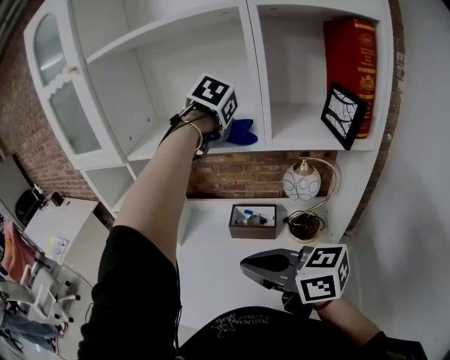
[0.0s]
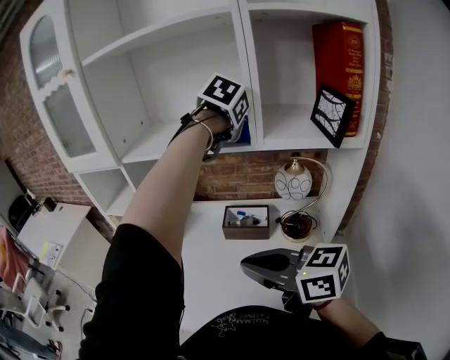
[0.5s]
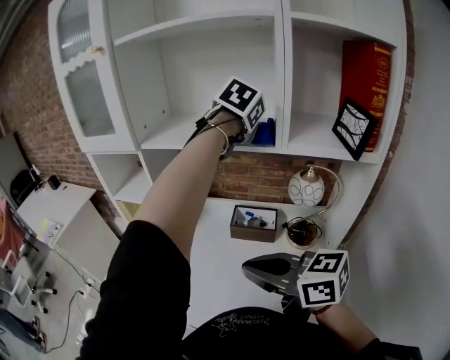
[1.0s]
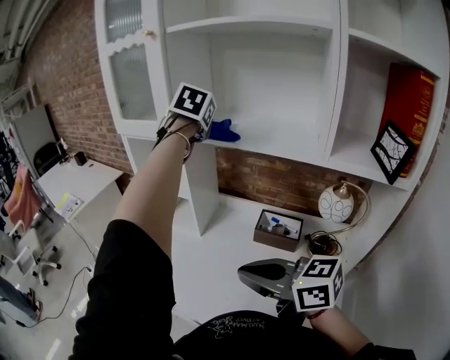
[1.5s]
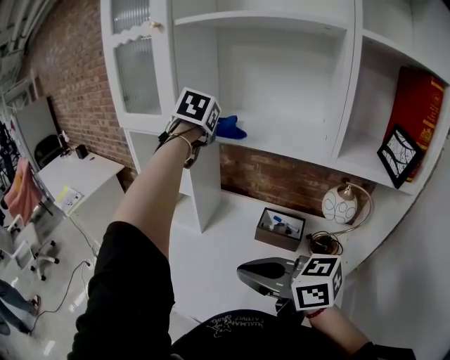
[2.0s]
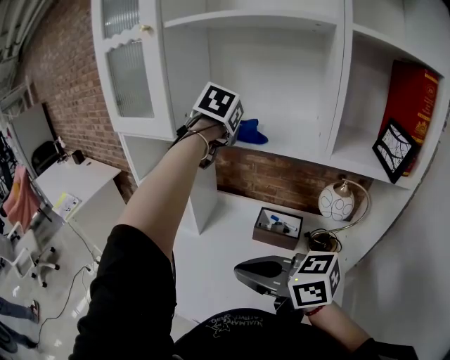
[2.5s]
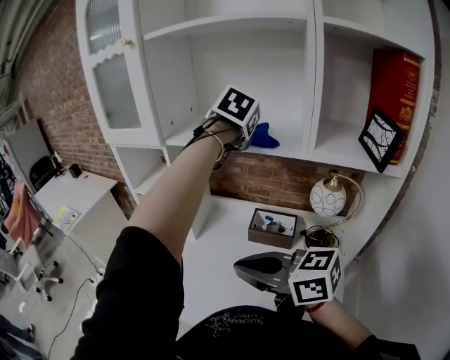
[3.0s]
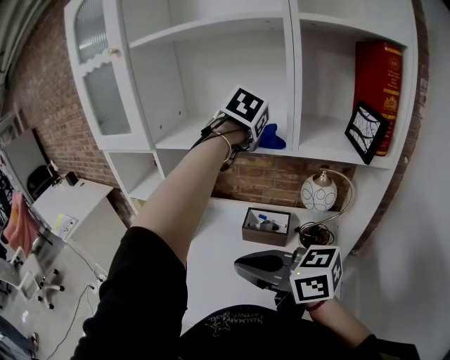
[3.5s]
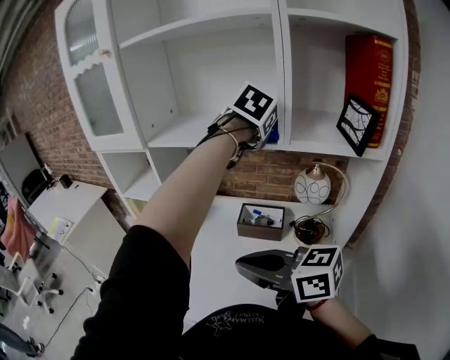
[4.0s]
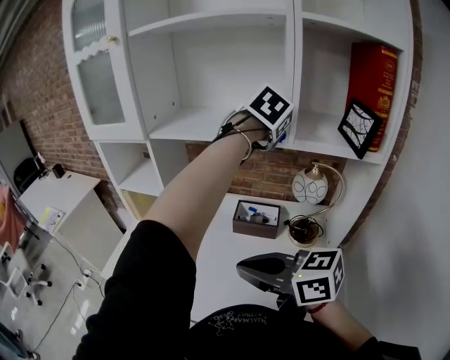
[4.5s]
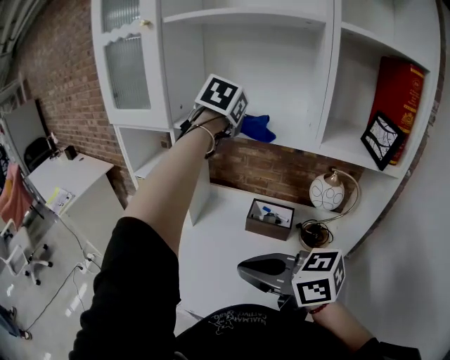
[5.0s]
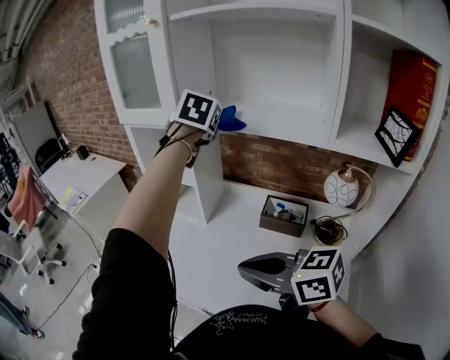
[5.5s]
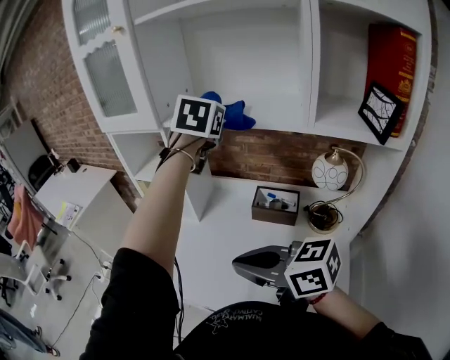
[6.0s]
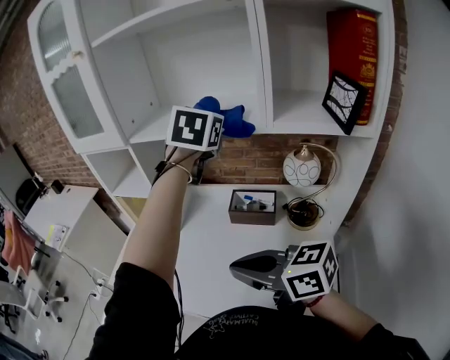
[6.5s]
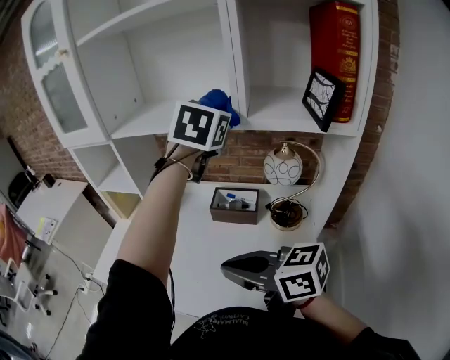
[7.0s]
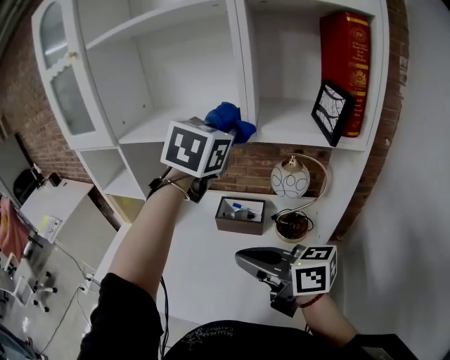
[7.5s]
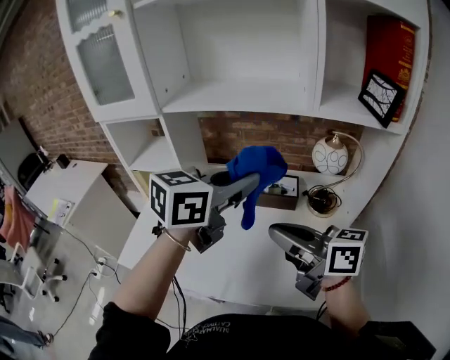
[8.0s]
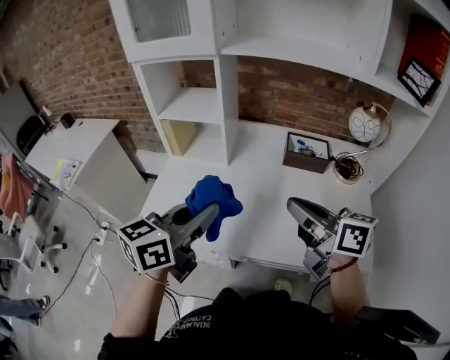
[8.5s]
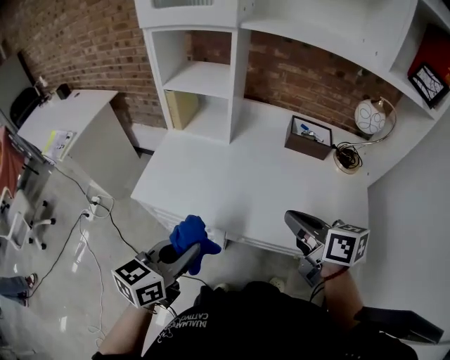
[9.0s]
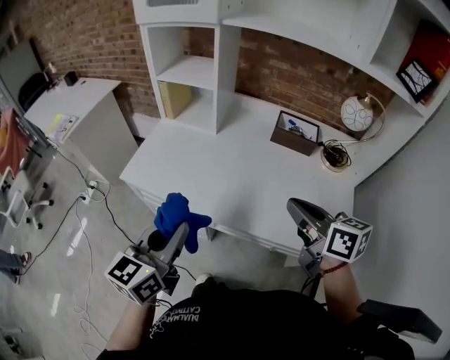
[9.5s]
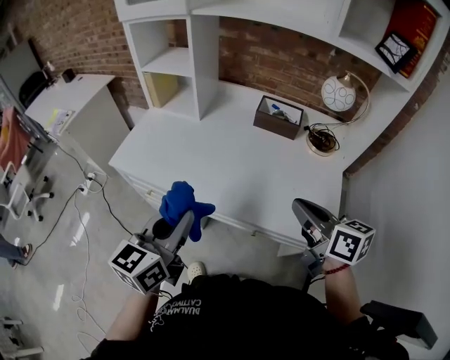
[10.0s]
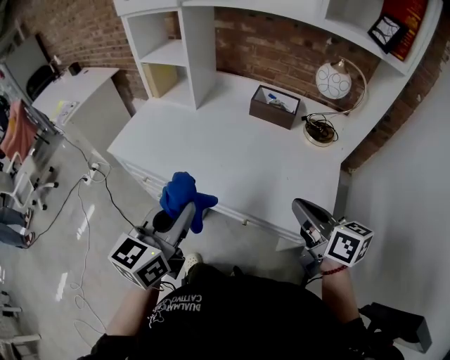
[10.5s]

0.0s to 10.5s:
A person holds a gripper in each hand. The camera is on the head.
0.0s to 2.0s: The right gripper shifts roughly 10 cm to the left. Meanwhile the left gripper goes some 25 cm to the left and forward, and turns by roughly 30 degrees.
2.0s to 4.0s: The right gripper moves roughly 5 cm; the left gripper shifts roughly 30 cm to the right and backward, and rotates roughly 30 degrees.
4.0s to 6.5s: The left gripper goes to the left and returns, about 25 cm each way, and rotates roughly 20 degrees.
6.5s to 8.5s: The right gripper moves some 10 cm, and rotates approximately 30 degrees. Meanwhile the left gripper moves some 50 cm, and changes its angle by some 50 degrees.
8.5s to 10.5s: The left gripper shifts roughly 25 cm backward and to the right, and swivels roughly 30 degrees. Meanwhile the right gripper travels to the right and backward by approximately 25 cm.

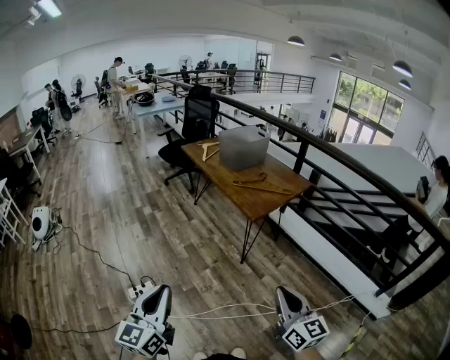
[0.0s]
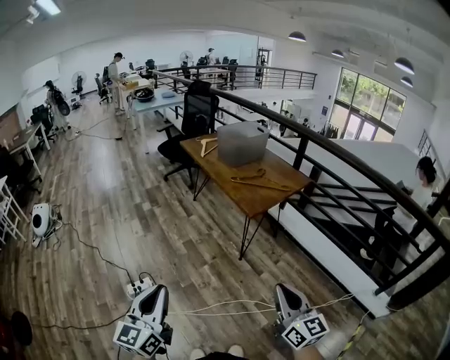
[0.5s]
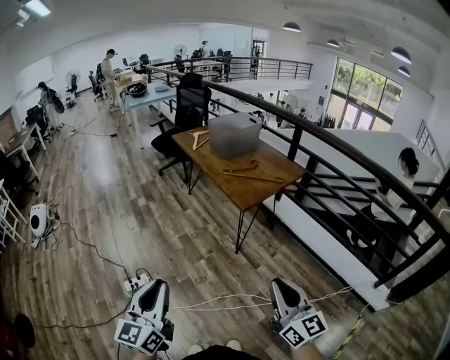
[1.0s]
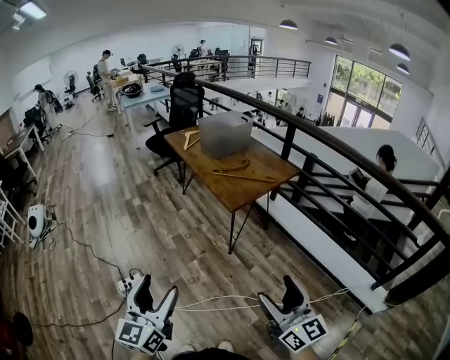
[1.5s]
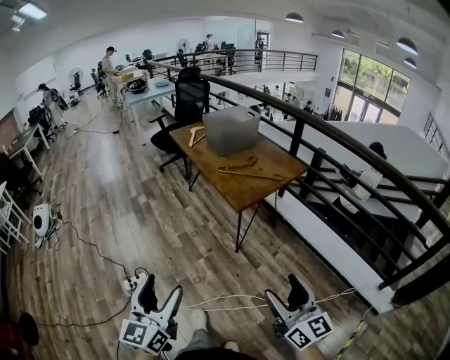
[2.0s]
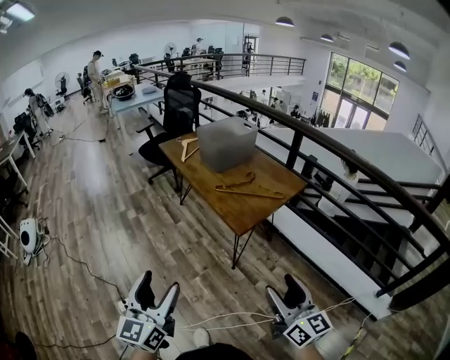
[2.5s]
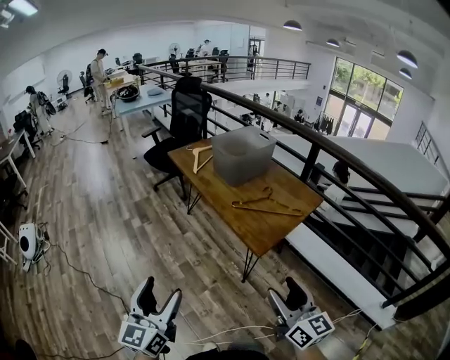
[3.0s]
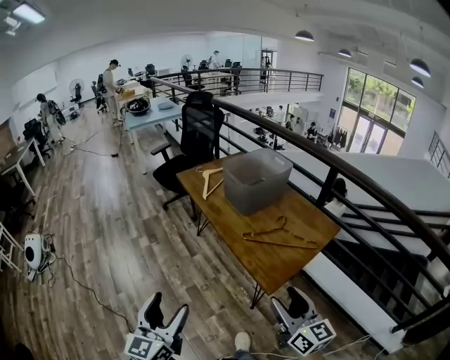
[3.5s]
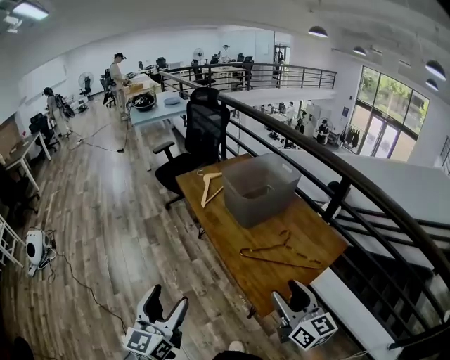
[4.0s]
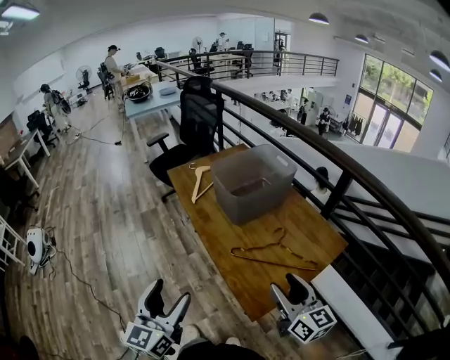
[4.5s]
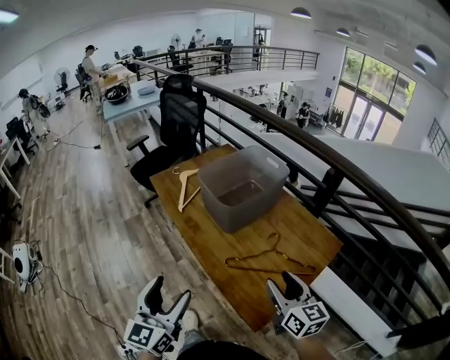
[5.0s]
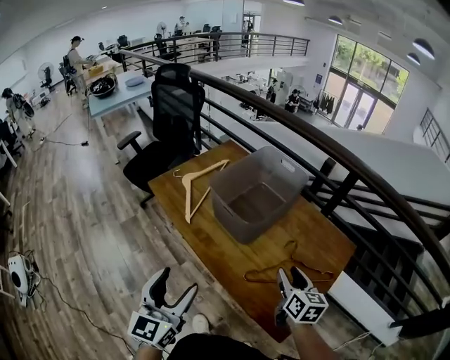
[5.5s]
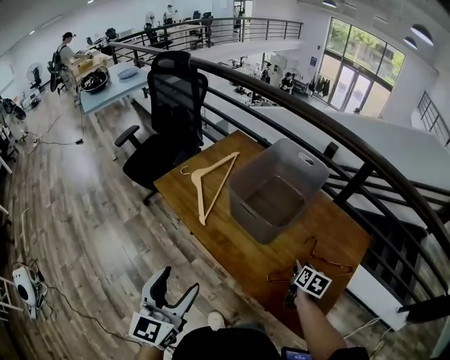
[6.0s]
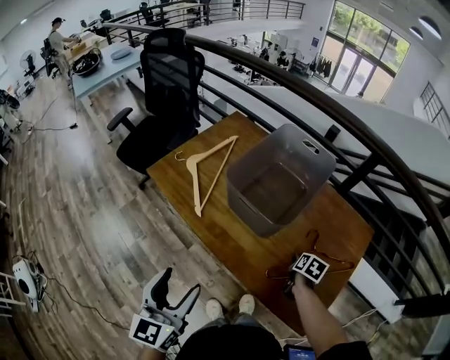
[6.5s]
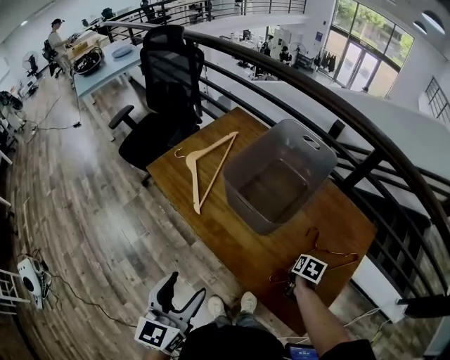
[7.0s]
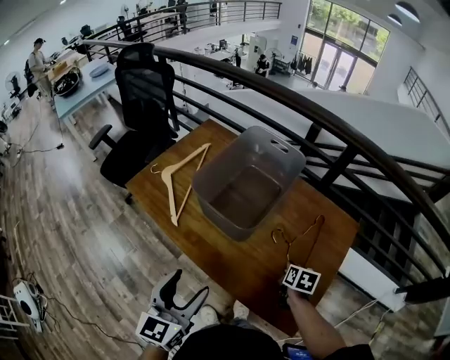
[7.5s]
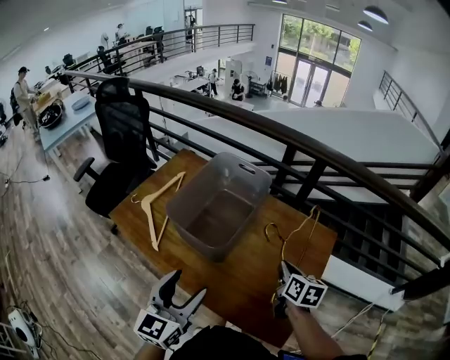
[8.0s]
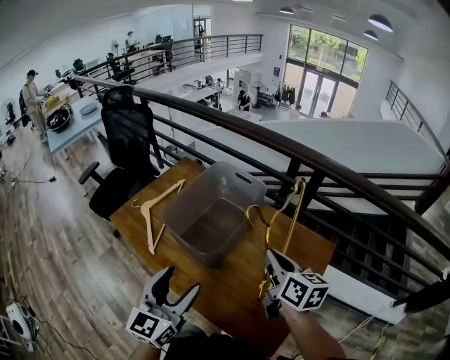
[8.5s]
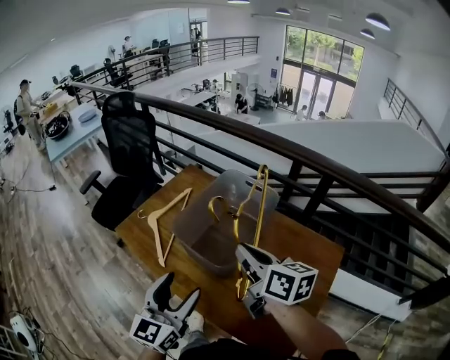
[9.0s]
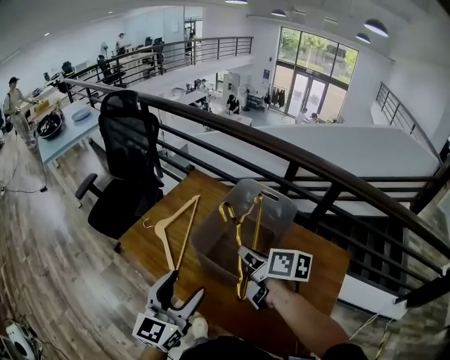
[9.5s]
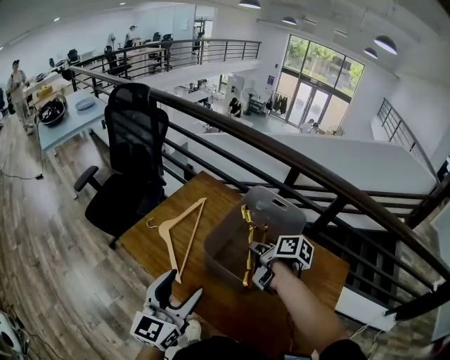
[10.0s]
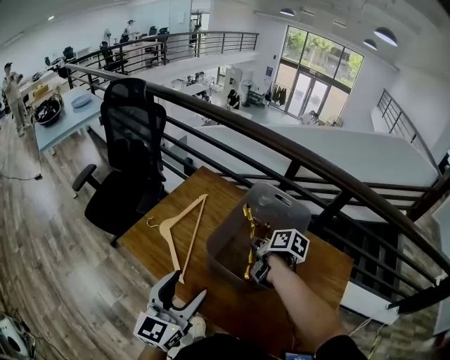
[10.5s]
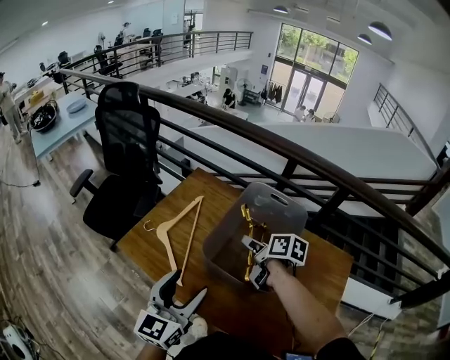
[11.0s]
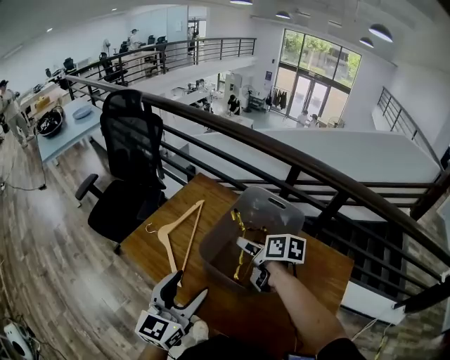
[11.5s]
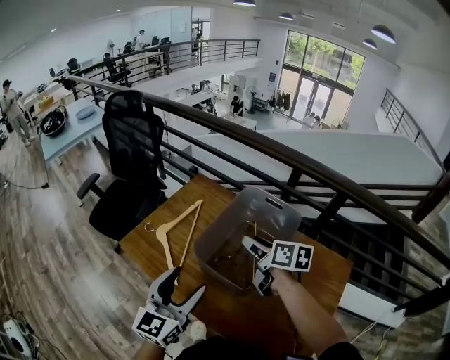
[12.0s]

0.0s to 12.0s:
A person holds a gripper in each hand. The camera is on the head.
0.0s to 2.0s: The left gripper travels to the right and forward by some 15 cm, and opens. Meanwhile the right gripper goes roughly 10 cm to the right, and opens up.
2.0s to 4.0s: Both grippers are carried forward, roughly 50 cm.
4.0s to 6.0s: The right gripper changes place by roughly 35 cm, and tilts its fingers roughly 40 degrees downward. The left gripper changes place by about 30 cm, and turns by about 20 degrees.
6.0s to 8.0s: The left gripper goes some 20 cm to the right and forward. Meanwhile the right gripper moves upward, about 10 cm, and closes.
8.0s to 10.0s: The left gripper travels to the left and forward by some 20 cm. The right gripper moves to the left and forward, some 30 cm, and changes its angle by some 30 degrees.
10.0s to 12.0s: The right gripper swivels about 20 degrees, and opens up.

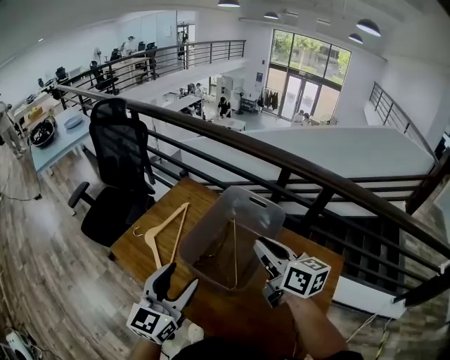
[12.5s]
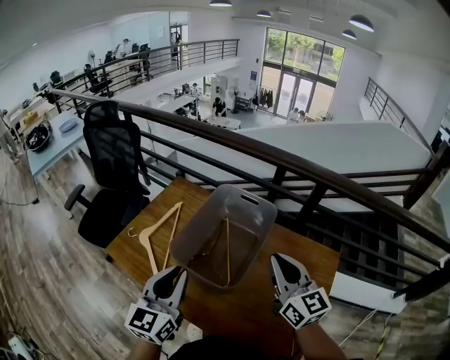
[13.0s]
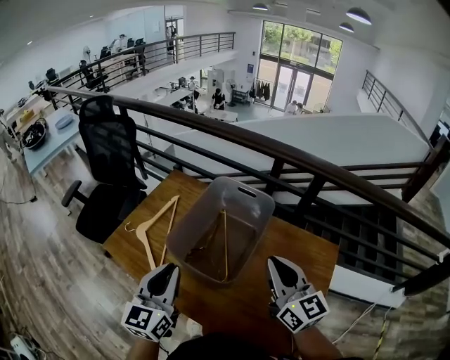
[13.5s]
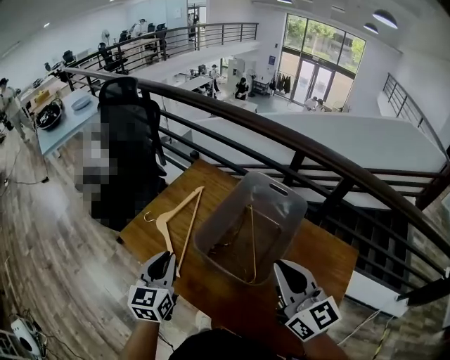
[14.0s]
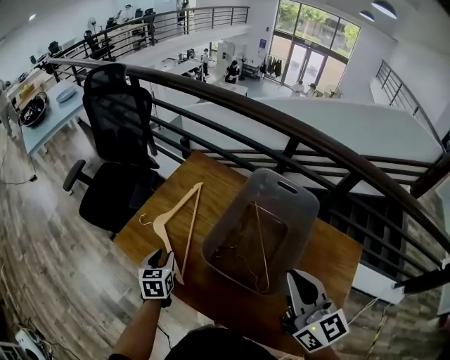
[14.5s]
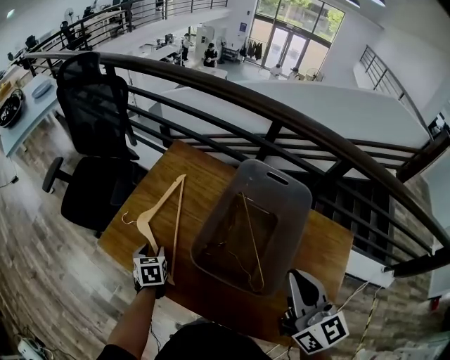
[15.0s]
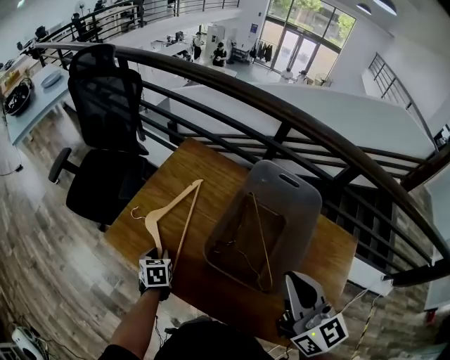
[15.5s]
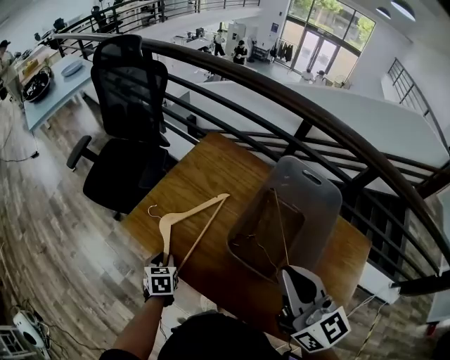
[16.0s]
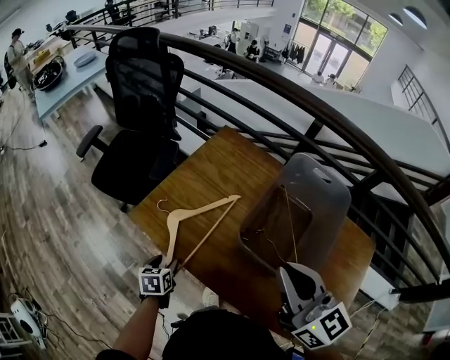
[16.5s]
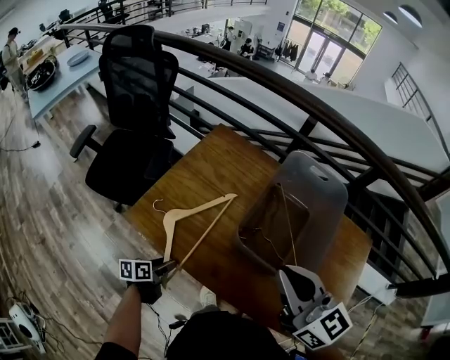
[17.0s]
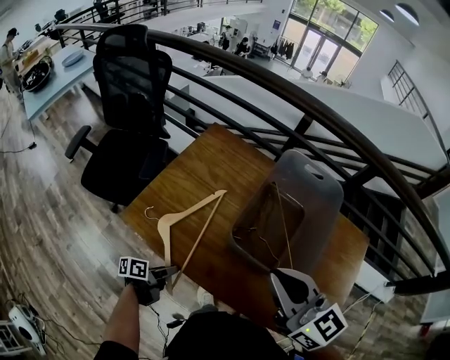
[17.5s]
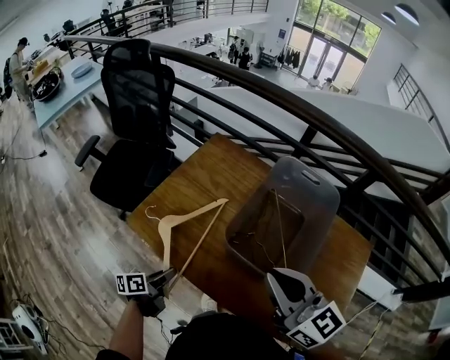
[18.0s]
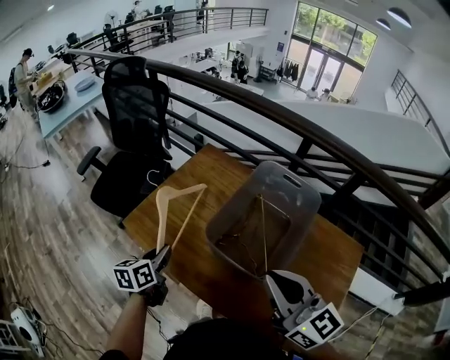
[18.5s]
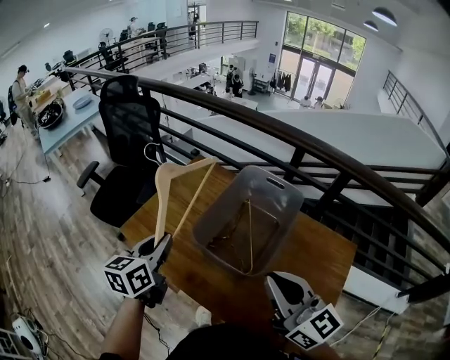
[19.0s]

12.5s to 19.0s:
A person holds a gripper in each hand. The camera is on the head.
12.5s to 14.5s: The left gripper goes about 30 cm downward, to the left and forward, tilts its fingers some 40 degrees downward, and closes up. Meanwhile the right gripper moves backward, about 5 cm, and changes its angle by some 20 degrees.
14.5s to 17.0s: The left gripper moves downward, backward and to the left, about 15 cm, and changes its angle by roughly 50 degrees; the right gripper goes about 10 cm to the left.
17.0s to 19.0s: The left gripper goes roughly 30 cm upward, changes its angle by about 40 degrees, and closes up. Meanwhile the right gripper shifts some 10 cm to the right and backward.
